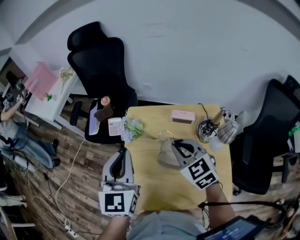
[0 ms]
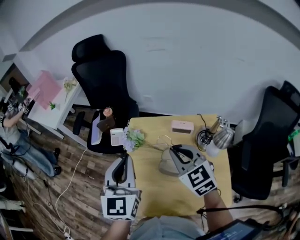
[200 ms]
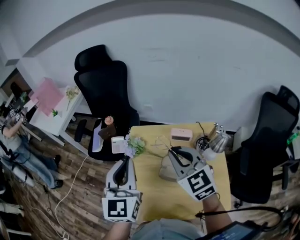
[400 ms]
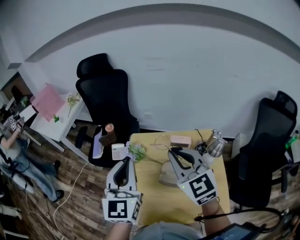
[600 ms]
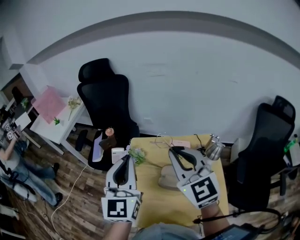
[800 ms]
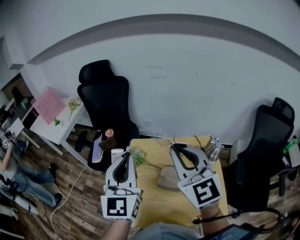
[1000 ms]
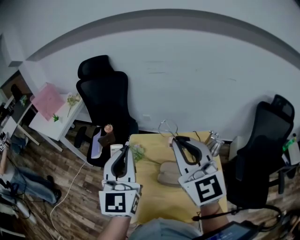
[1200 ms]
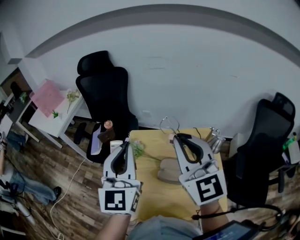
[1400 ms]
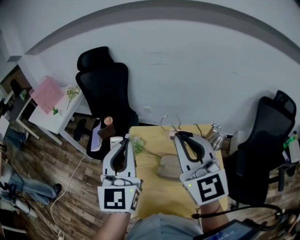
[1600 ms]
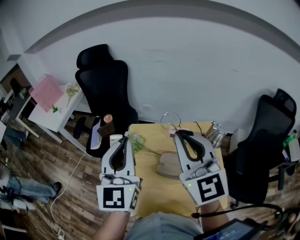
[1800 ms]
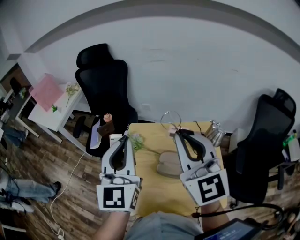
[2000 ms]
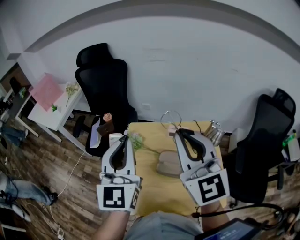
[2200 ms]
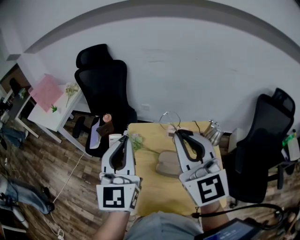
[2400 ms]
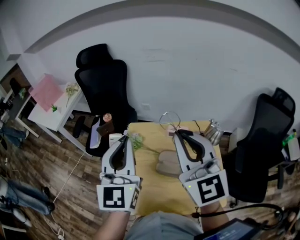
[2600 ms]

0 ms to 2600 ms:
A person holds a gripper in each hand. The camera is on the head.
0 ms to 1200 ms: The right gripper goes approximately 25 cm upward, and tilts its fingers some 30 degrees upward; the left gripper is displaced upward by roughly 10 cm.
1200 ms to 2600 ms: The grippers make only small movements.

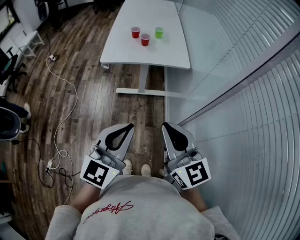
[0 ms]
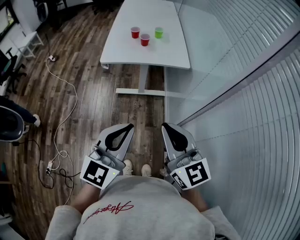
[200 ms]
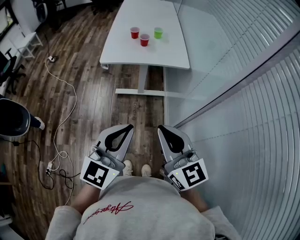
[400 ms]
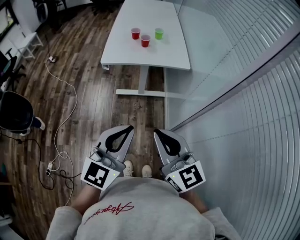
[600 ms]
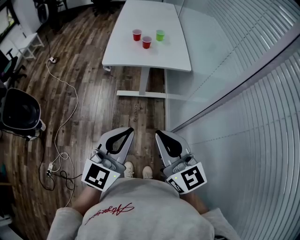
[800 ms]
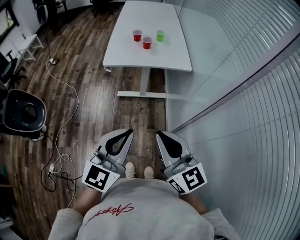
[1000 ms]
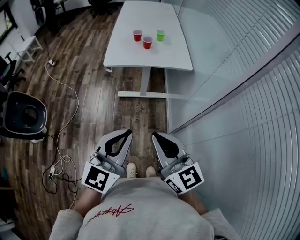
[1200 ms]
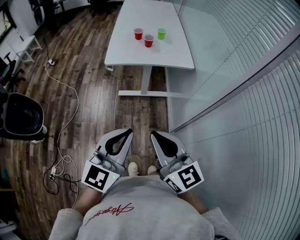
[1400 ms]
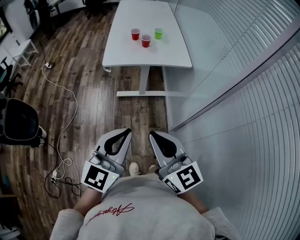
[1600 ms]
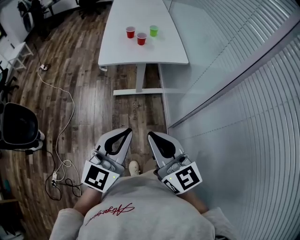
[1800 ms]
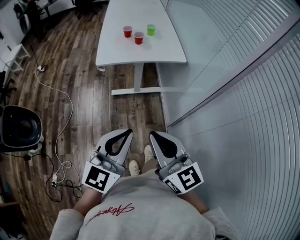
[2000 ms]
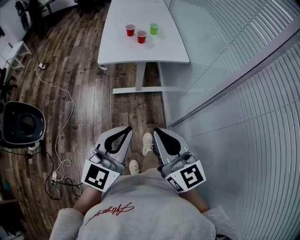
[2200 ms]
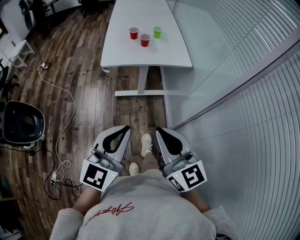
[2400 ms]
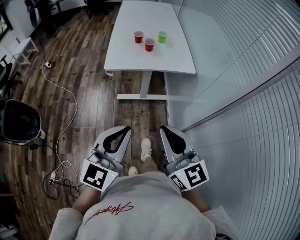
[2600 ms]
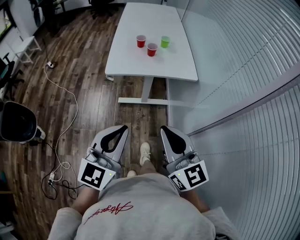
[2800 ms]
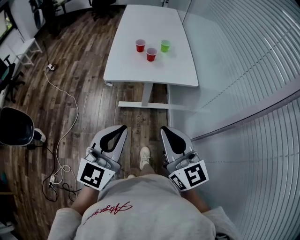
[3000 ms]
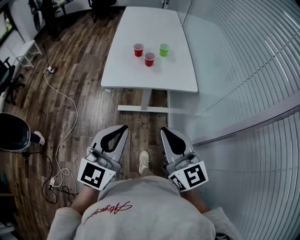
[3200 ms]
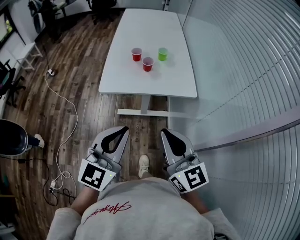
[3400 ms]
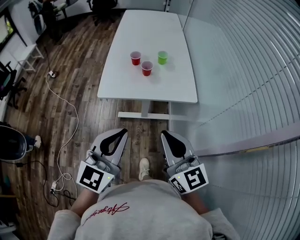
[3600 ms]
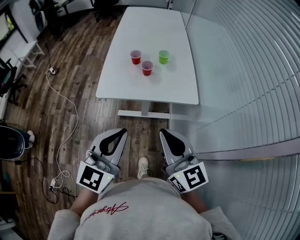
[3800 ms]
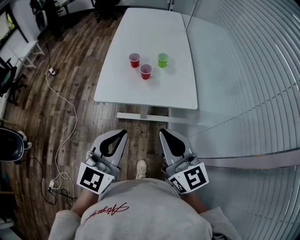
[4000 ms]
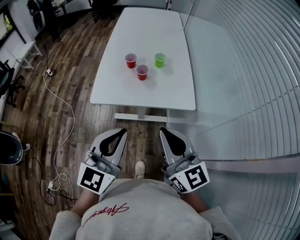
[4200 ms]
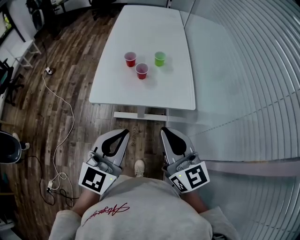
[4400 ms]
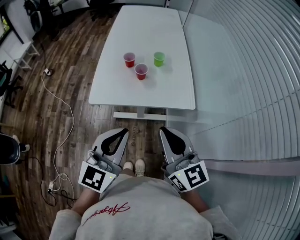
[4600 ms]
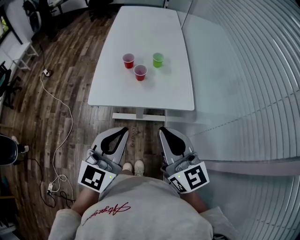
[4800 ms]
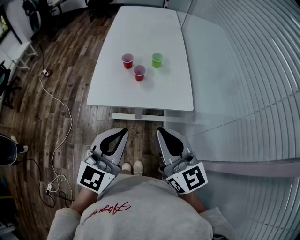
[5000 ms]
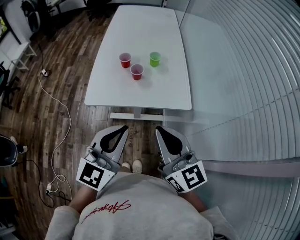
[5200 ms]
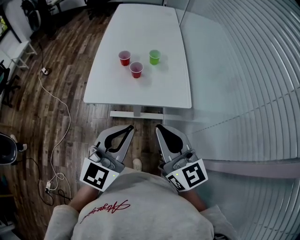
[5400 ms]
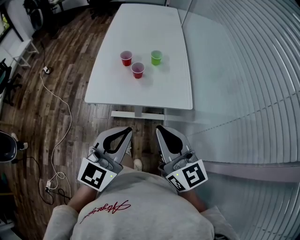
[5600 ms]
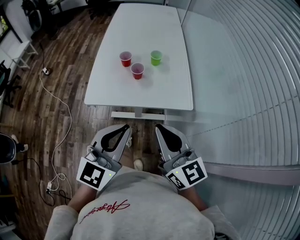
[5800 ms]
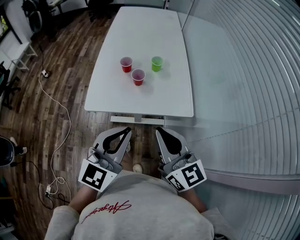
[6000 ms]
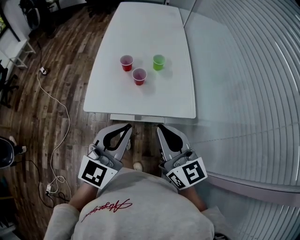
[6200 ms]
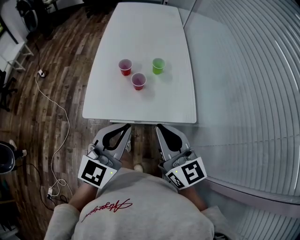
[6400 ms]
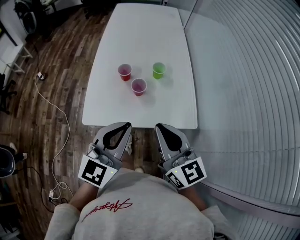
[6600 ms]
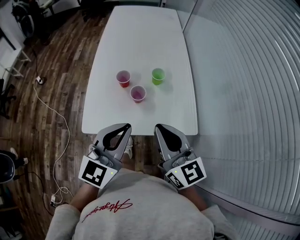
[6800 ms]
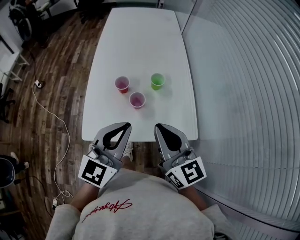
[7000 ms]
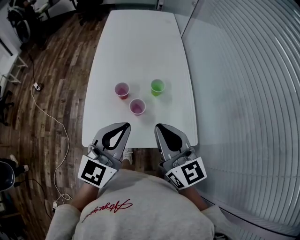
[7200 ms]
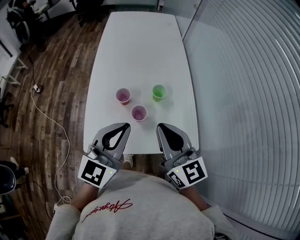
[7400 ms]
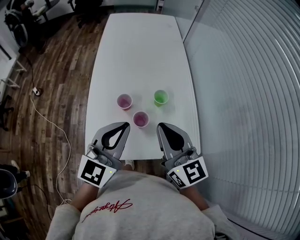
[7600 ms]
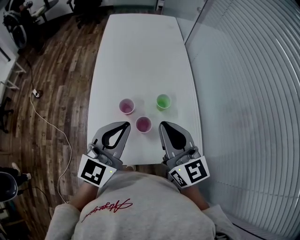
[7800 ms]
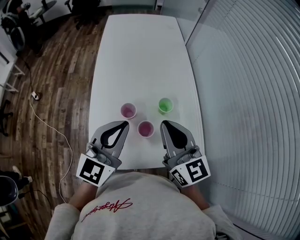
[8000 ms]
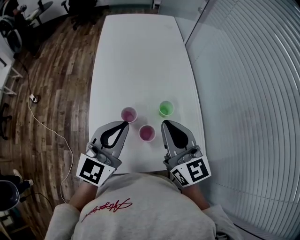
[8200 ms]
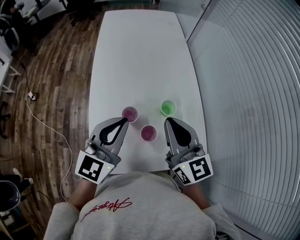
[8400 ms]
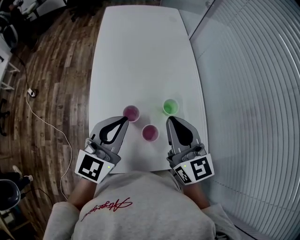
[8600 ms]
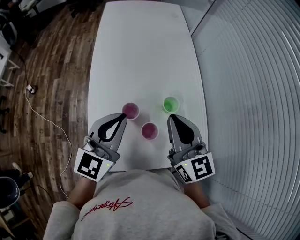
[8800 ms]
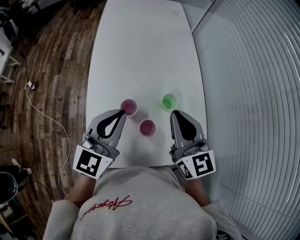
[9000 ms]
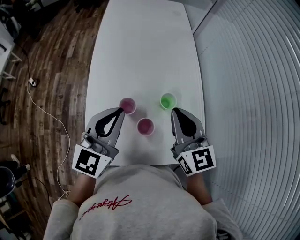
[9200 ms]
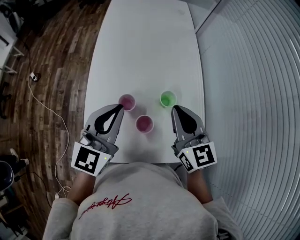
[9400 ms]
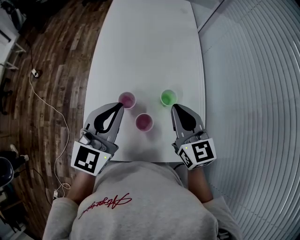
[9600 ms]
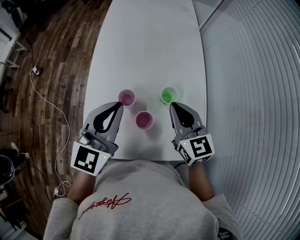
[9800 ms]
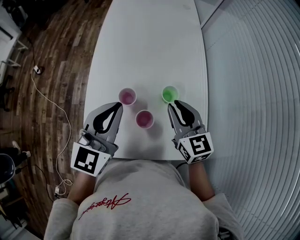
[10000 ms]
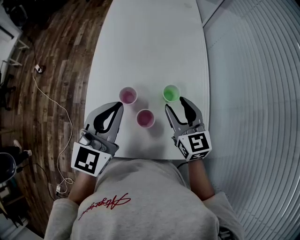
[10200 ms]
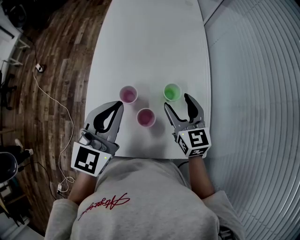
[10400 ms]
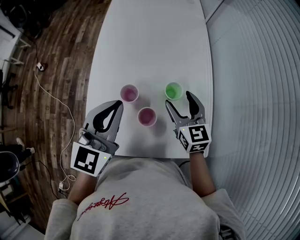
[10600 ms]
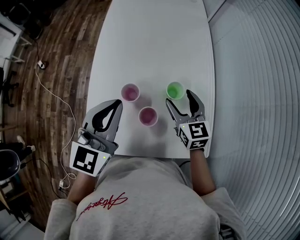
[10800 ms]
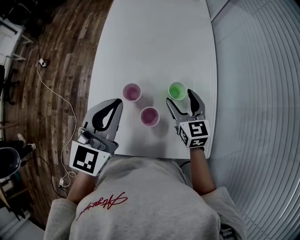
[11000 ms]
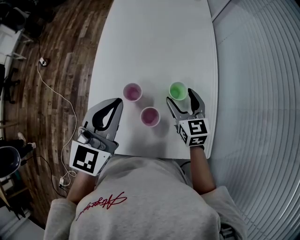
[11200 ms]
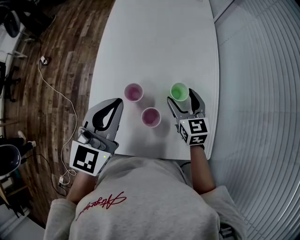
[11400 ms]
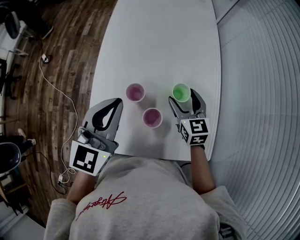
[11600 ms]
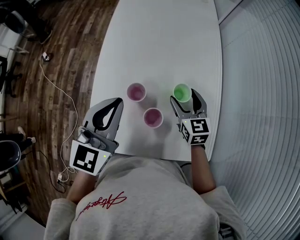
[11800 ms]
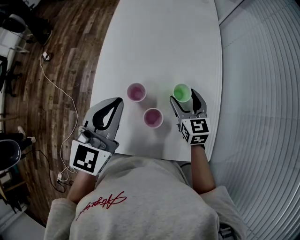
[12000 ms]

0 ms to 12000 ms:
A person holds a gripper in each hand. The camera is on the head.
0 ms to 1600 ms: The grippers both shift to the left by roughly 10 cm.
1600 ms to 3000 ms: The grippers both shift forward by some 15 cm.
3000 ms to 4400 ms: The left gripper heads forward and to the right, covering some 20 cm, while the right gripper shifts roughly 20 cm forward.
4400 ms to 6000 ms: The left gripper moves forward, about 5 cm.
6000 ms to 7600 ms: The grippers both shift forward by some 30 cm.
7600 ms to 9000 ms: The right gripper moves forward, roughly 10 cm. Meanwhile the left gripper shifts approximately 15 cm forward and to the left.
9000 ms to 10400 ms: The right gripper travels downward by approximately 10 cm, and opens its fingers.
10400 ms to 12000 ms: The right gripper moves downward, roughly 10 cm.

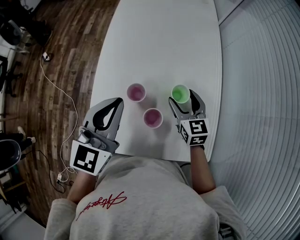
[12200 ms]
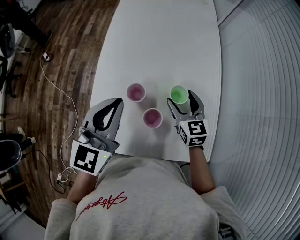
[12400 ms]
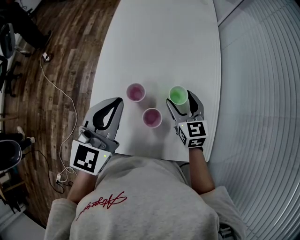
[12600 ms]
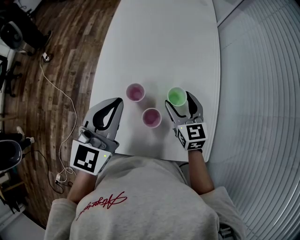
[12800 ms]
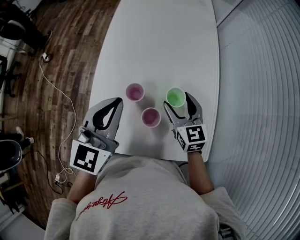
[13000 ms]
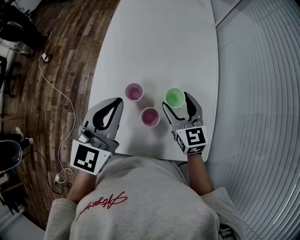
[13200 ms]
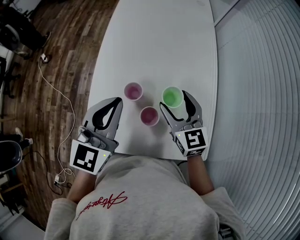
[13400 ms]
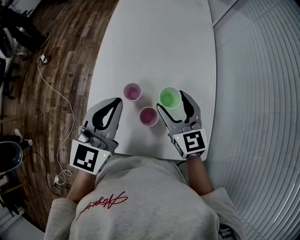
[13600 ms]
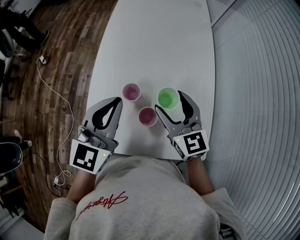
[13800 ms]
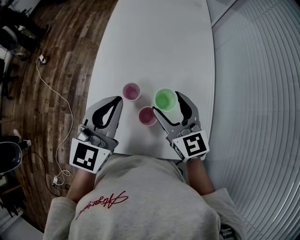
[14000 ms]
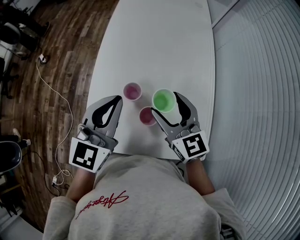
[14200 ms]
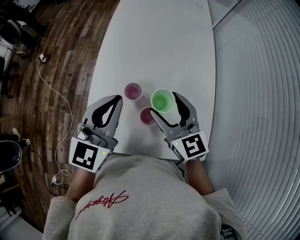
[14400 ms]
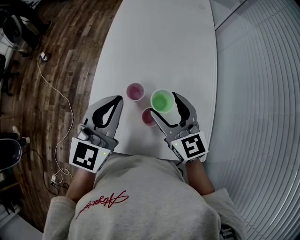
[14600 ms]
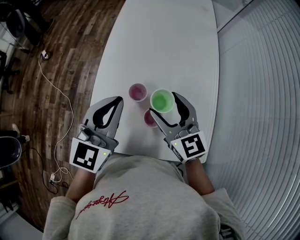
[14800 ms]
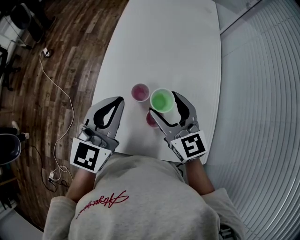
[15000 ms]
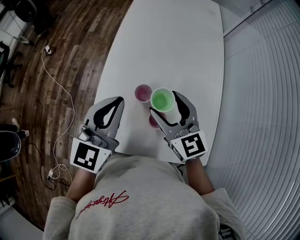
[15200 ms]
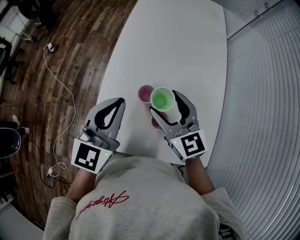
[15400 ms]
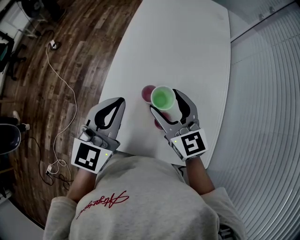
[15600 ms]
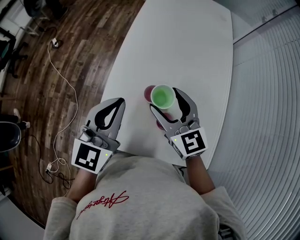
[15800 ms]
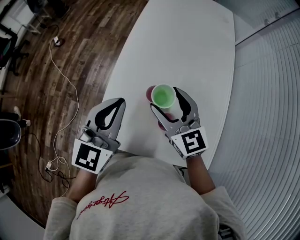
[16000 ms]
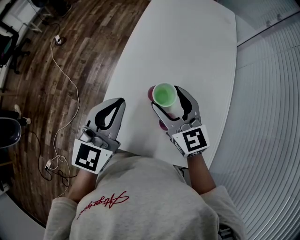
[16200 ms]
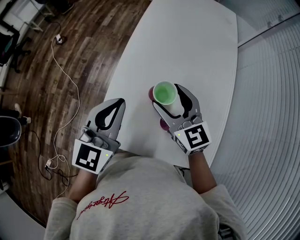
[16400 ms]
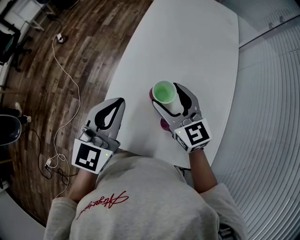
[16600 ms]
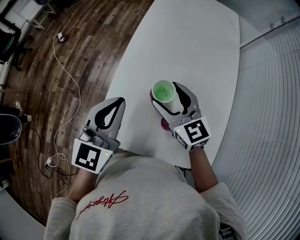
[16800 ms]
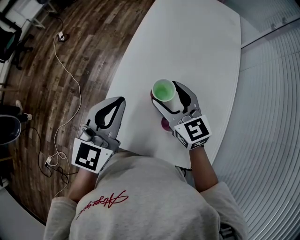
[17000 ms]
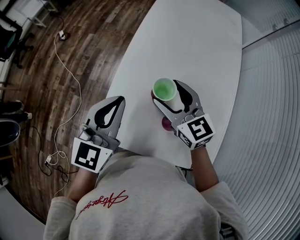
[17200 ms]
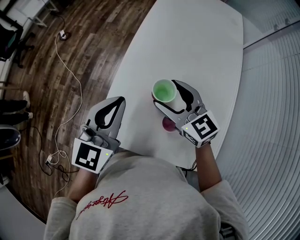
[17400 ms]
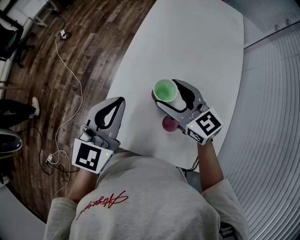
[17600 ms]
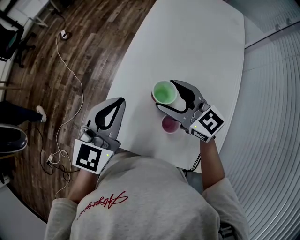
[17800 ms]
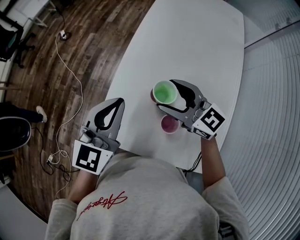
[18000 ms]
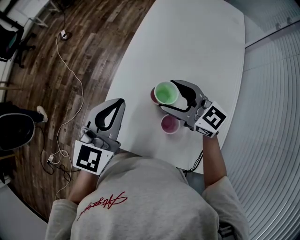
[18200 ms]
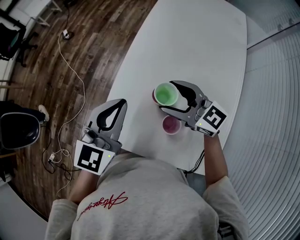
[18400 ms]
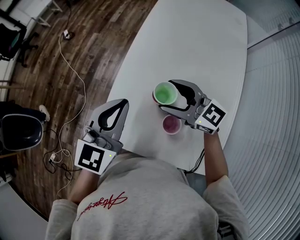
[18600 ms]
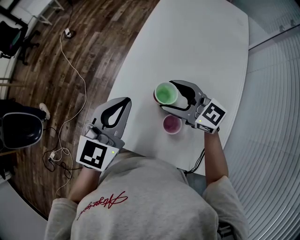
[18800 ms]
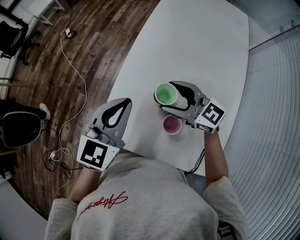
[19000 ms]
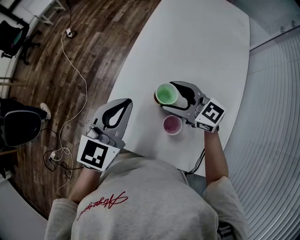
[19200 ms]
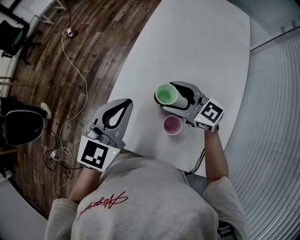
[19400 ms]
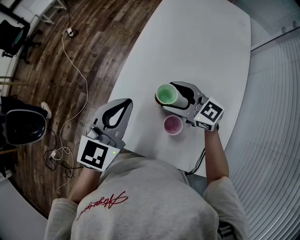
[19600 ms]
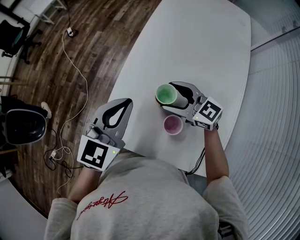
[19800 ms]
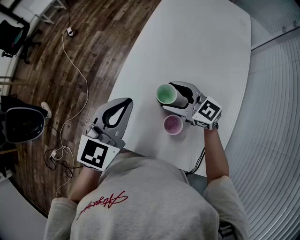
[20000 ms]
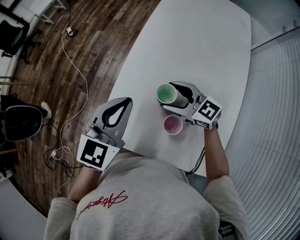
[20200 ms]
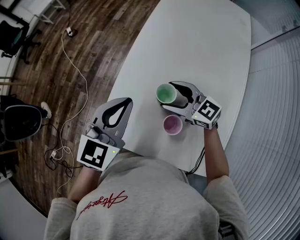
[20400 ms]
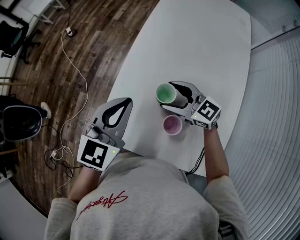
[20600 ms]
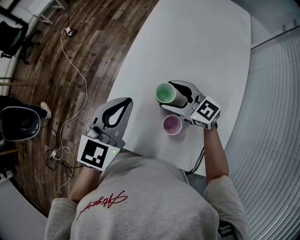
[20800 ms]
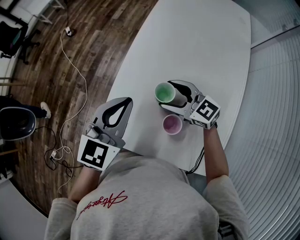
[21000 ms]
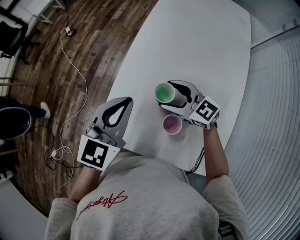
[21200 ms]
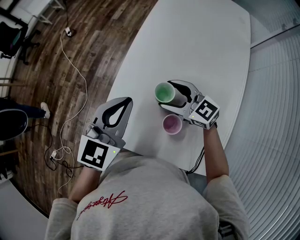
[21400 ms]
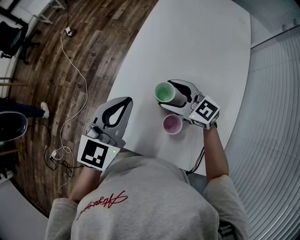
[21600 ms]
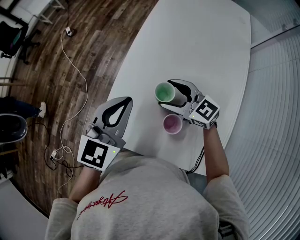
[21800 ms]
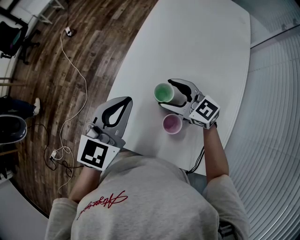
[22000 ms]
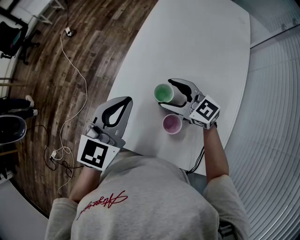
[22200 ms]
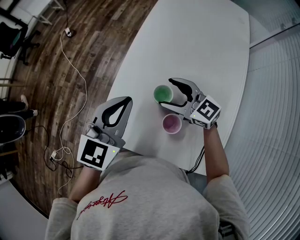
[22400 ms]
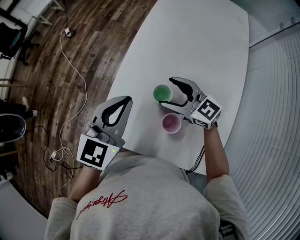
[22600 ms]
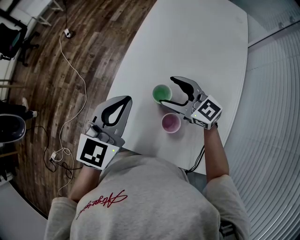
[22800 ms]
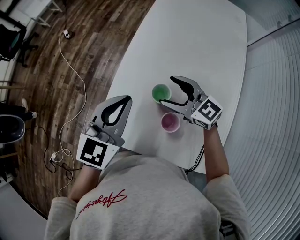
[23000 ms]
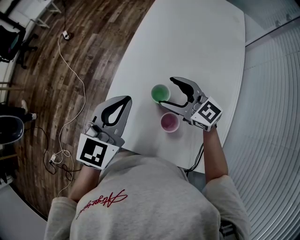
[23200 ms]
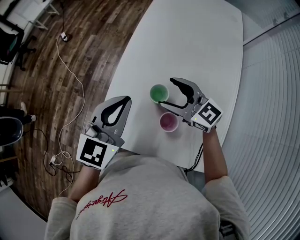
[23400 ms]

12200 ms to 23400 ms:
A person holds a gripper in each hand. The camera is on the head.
12200 ms to 13800 ms: The right gripper heads upward and backward, covering approximately 10 cm.
13800 ms to 15400 ms: Both grippers travel together to the left, approximately 5 cm.
15400 ms to 17000 ms: The right gripper changes place by some 5 cm.
17000 ms to 18600 ms: The right gripper rotates some 30 degrees.
18600 ms to 20200 ms: The right gripper goes about 5 cm downward.
20200 ms to 21800 ms: Both grippers stay put.
21800 ms to 23400 ms: The grippers stay close to where they were, moving slightly.
